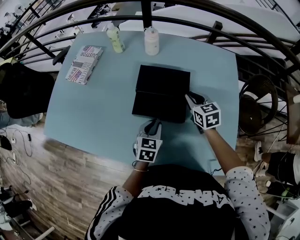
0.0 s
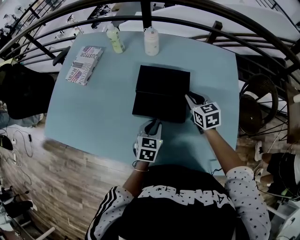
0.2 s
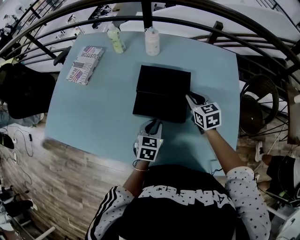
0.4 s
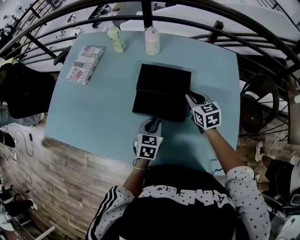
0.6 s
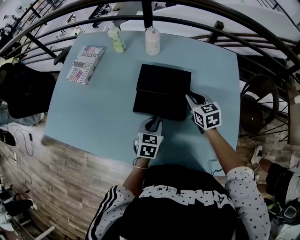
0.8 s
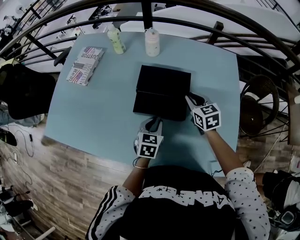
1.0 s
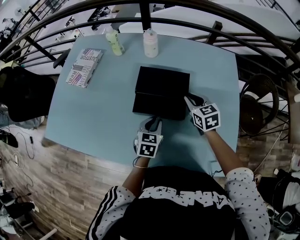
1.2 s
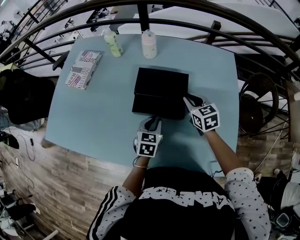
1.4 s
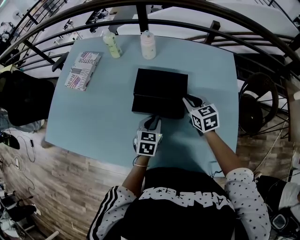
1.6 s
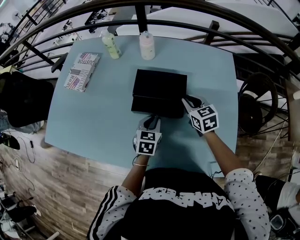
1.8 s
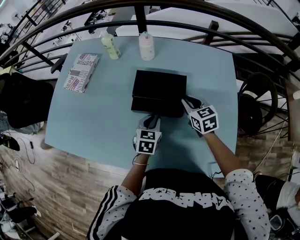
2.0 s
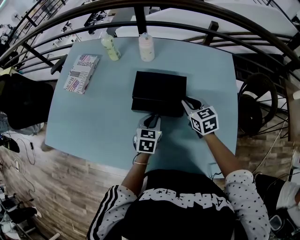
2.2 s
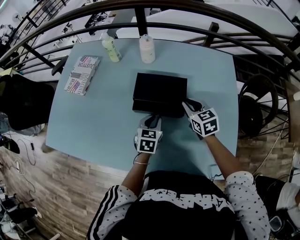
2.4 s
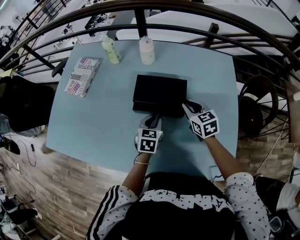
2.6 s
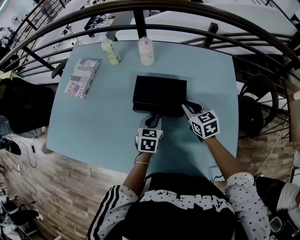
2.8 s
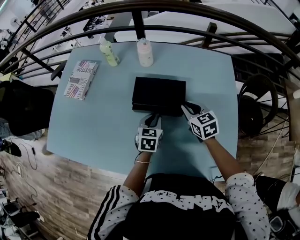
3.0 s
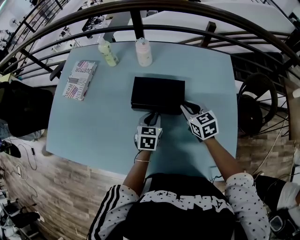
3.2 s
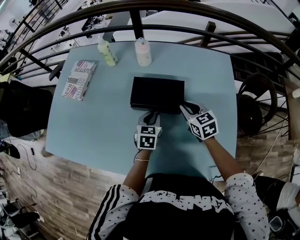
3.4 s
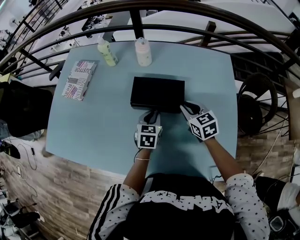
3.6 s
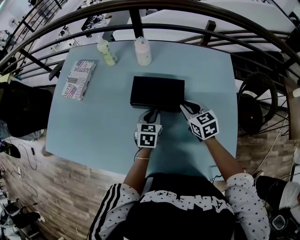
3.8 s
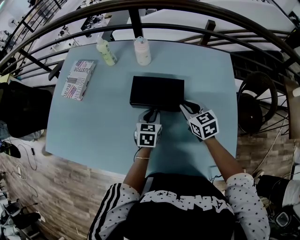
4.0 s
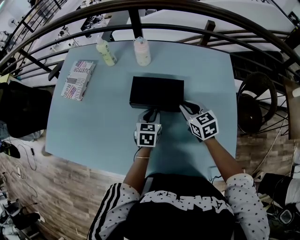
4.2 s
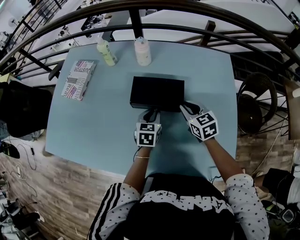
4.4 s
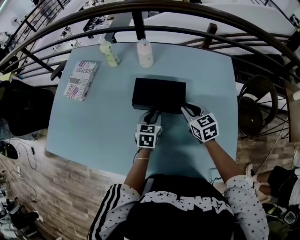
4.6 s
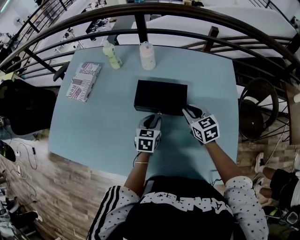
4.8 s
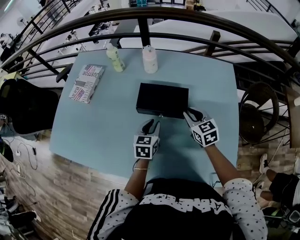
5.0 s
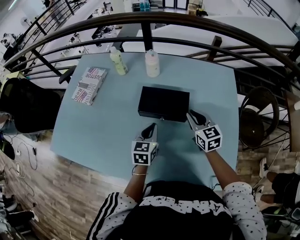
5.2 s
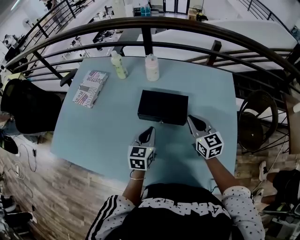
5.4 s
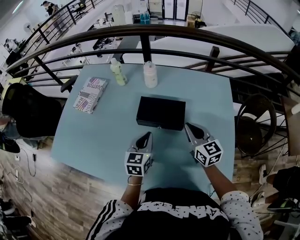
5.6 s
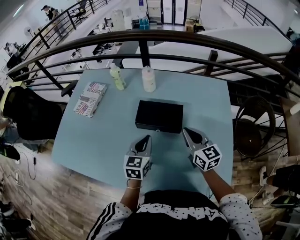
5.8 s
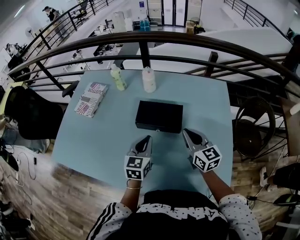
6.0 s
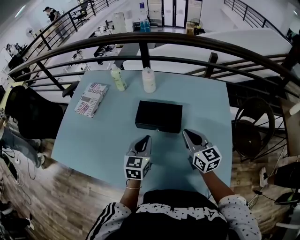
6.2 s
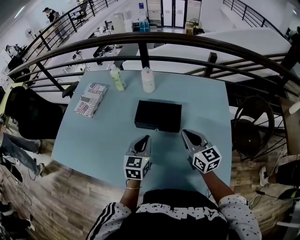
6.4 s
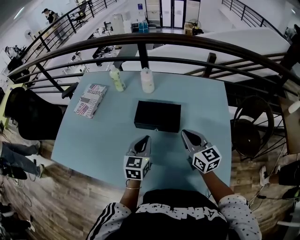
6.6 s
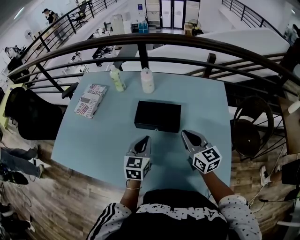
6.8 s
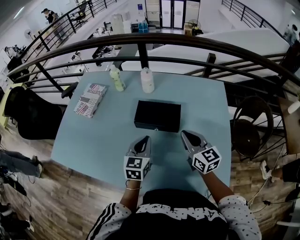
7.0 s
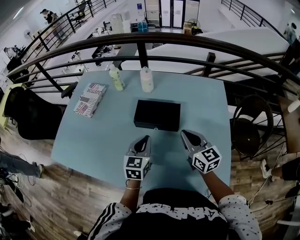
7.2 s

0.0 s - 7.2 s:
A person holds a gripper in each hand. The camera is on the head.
0.0 s - 1.4 s: The grippers move only a little.
1.4 s - 2.8 s: The left gripper changes place by roughly 5 cm.
2.8 s - 4.4 s: The grippers stay close to where they were, moving slightly.
4.4 s - 5.8 s: Both grippers move upward and backward, approximately 15 cm. The right gripper swivels roughly 20 degrees.
5.8 s - 7.2 s: The grippers stay close to where they were, moving slightly.

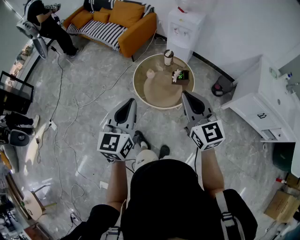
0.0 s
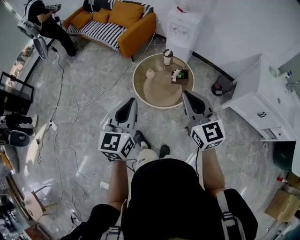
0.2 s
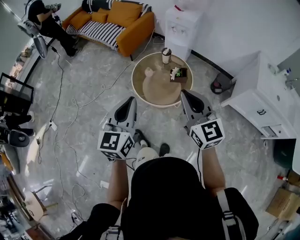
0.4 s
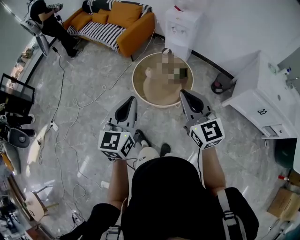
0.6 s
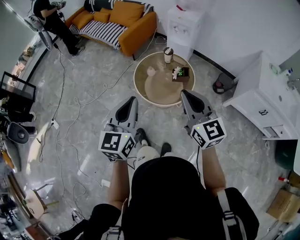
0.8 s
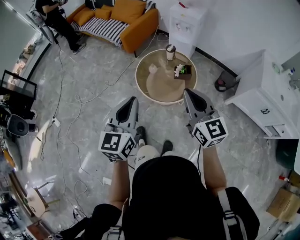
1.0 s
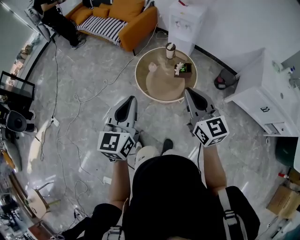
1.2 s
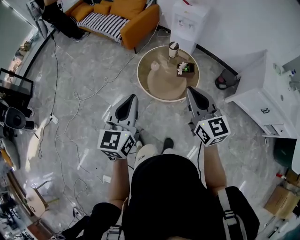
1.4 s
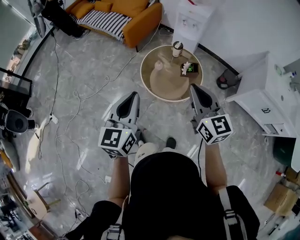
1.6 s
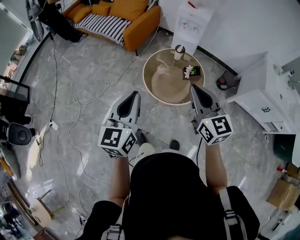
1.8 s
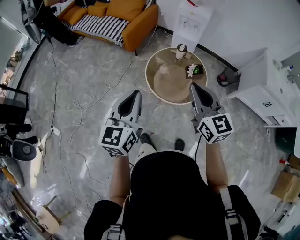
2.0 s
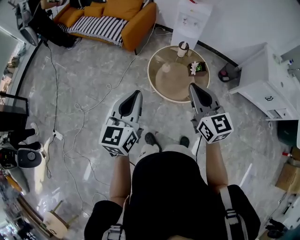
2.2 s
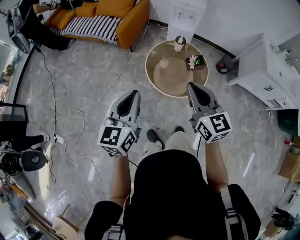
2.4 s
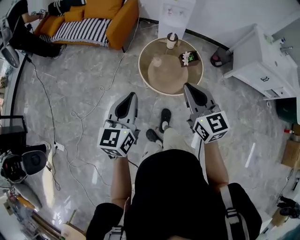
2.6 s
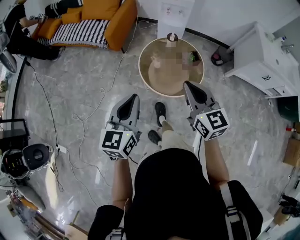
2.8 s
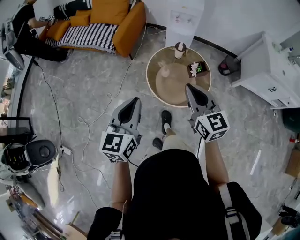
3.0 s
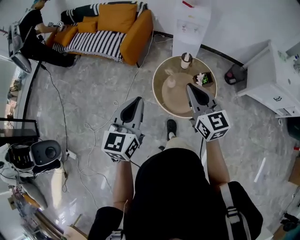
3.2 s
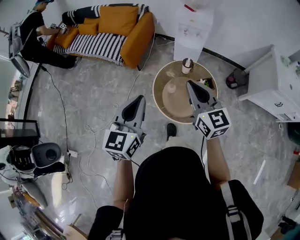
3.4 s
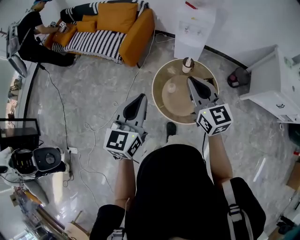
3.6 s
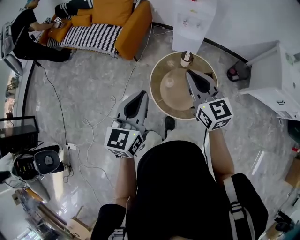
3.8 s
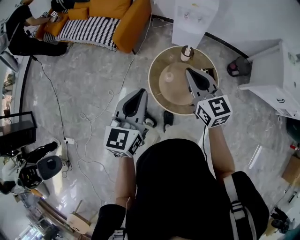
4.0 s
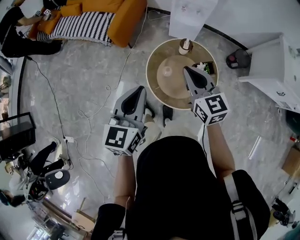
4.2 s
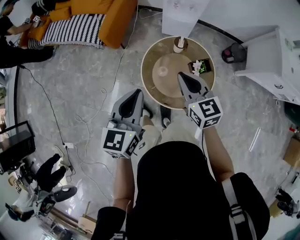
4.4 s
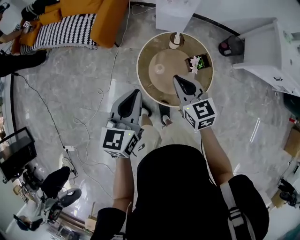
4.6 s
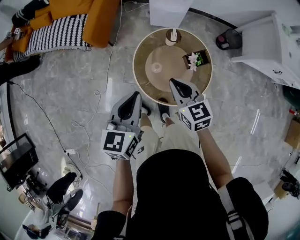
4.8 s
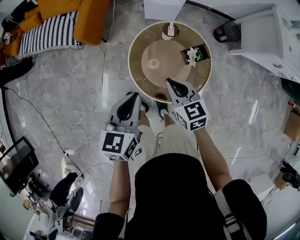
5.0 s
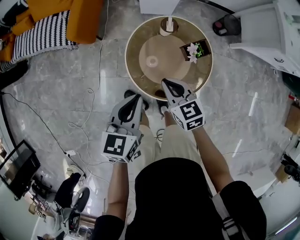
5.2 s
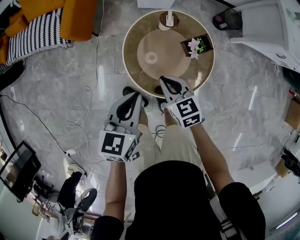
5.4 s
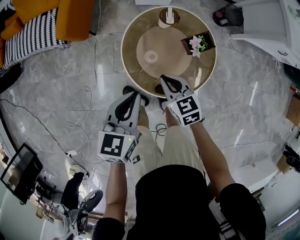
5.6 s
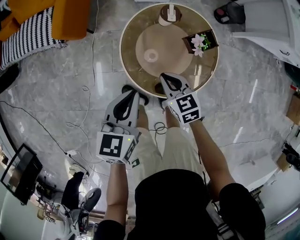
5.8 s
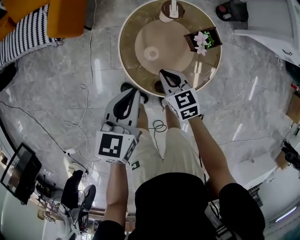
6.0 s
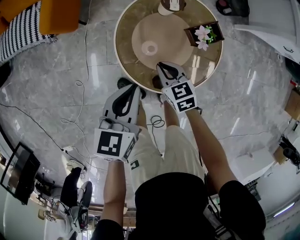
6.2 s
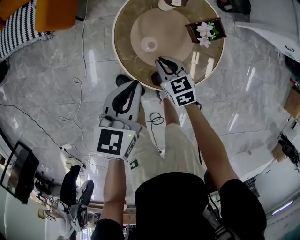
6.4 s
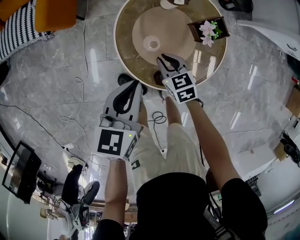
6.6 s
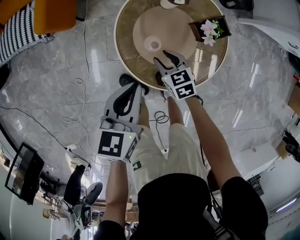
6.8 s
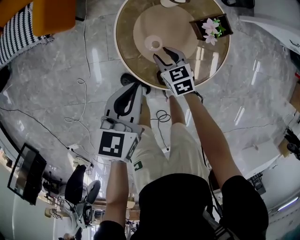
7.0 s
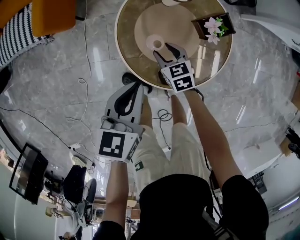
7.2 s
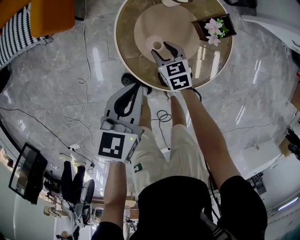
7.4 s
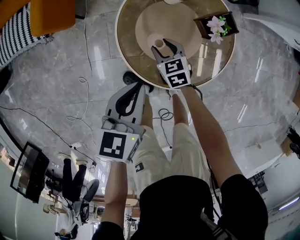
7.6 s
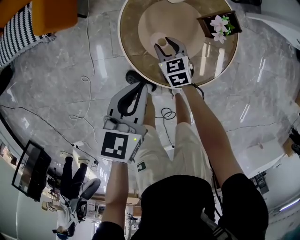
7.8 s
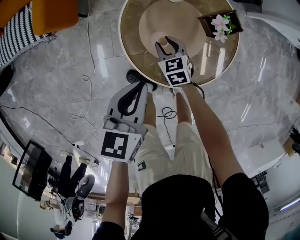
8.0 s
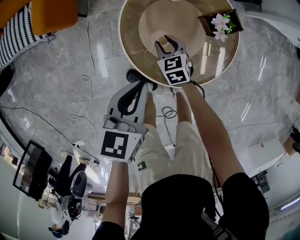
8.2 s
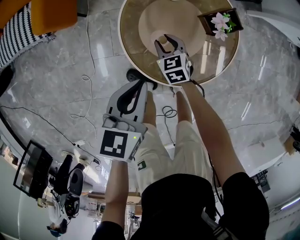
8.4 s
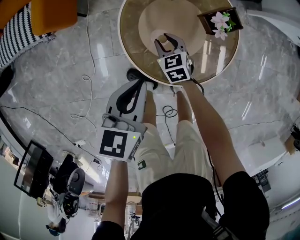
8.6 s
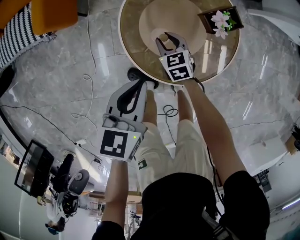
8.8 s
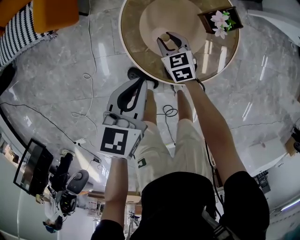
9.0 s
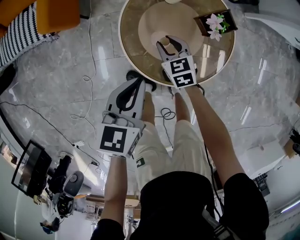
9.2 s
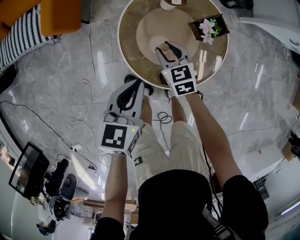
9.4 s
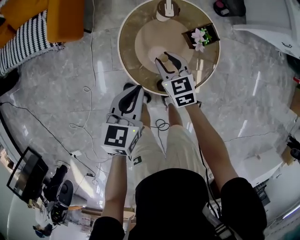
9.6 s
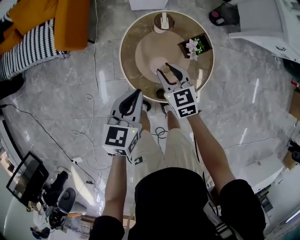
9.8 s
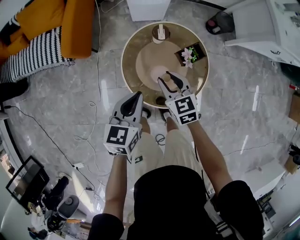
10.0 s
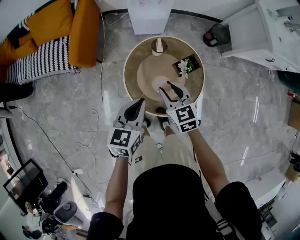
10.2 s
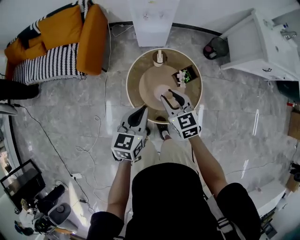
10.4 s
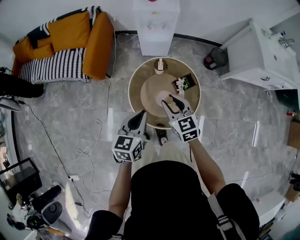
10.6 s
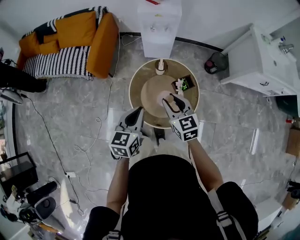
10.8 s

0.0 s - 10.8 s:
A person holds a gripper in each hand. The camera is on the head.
0.0 s - 1.6 s: The grippers both shift to the left by approximately 5 cm.
1.6 s - 3.0 s: The left gripper travels forward and to the left by some 20 cm. The right gripper travels to the left, forward and downward by approximately 20 cm.
3.0 s - 4.6 s: Both grippers travel together forward and downward, some 25 cm.
4.6 s - 6.2 s: The two grippers go roughly 25 cm downward. The right gripper swivels about 20 degrees, while the left gripper rotates some 20 degrees.
6.2 s - 7.8 s: The right gripper moves downward and forward, roughly 15 cm, and opens up; the left gripper ends up some 5 cm from where it was.
7.8 s - 9.2 s: The right gripper is displaced upward by some 5 cm.
9.2 s - 10.8 s: The right gripper heads upward, covering some 40 cm, and rotates some 20 degrees. Meanwhile the left gripper heads upward, covering approximately 25 cm.

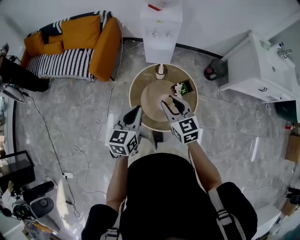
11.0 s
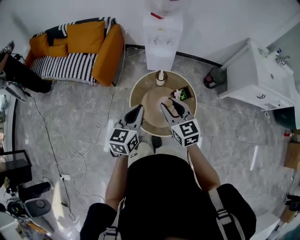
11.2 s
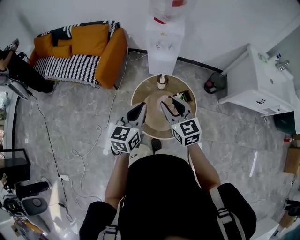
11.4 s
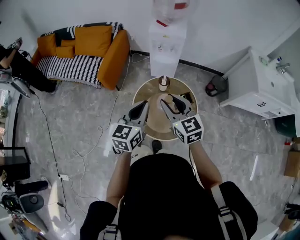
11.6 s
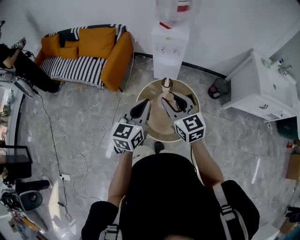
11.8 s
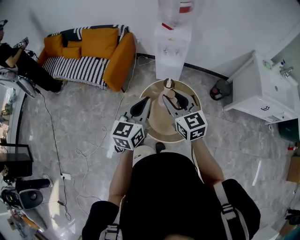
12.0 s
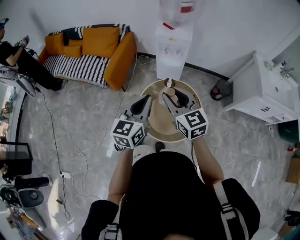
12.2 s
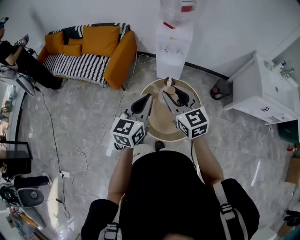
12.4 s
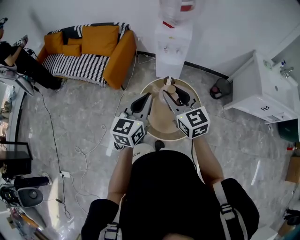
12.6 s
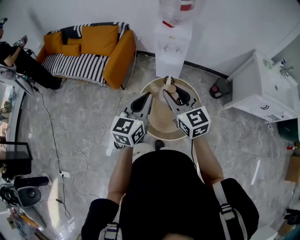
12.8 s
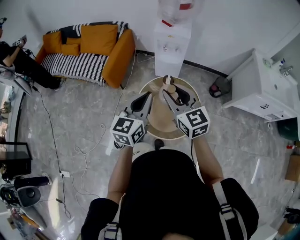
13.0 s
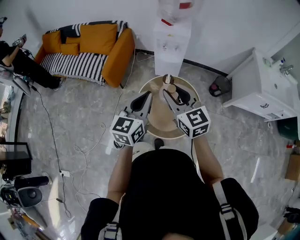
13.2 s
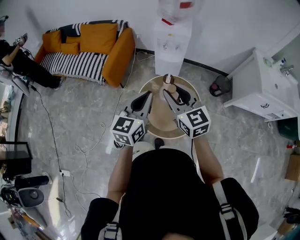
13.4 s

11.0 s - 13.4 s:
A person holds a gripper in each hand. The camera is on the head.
11.0 s - 12.2 s: Both grippers move upward, roughly 10 cm.
12.2 s - 13.4 s: Both grippers stay about where they are.

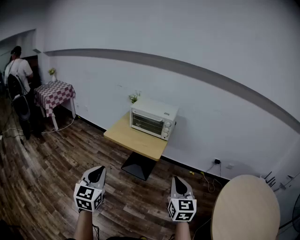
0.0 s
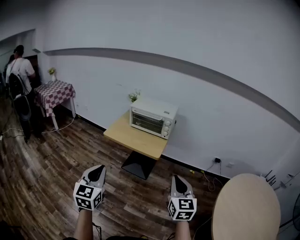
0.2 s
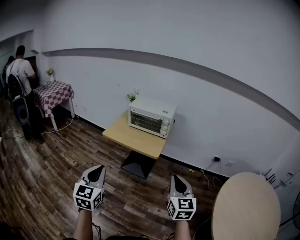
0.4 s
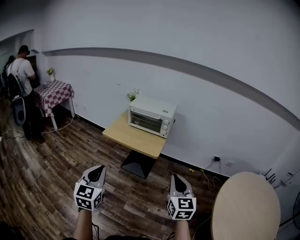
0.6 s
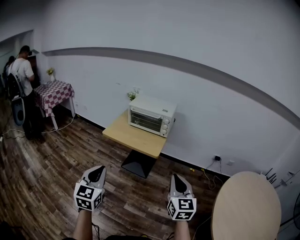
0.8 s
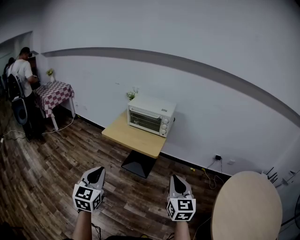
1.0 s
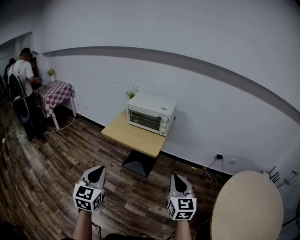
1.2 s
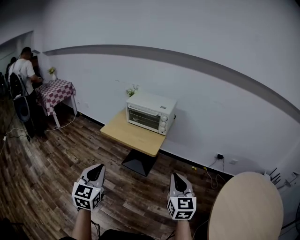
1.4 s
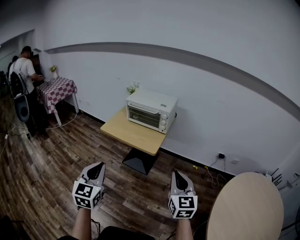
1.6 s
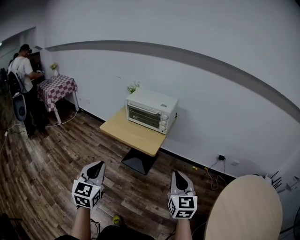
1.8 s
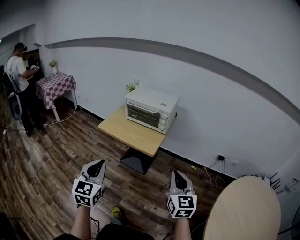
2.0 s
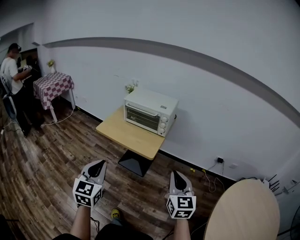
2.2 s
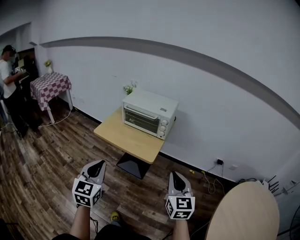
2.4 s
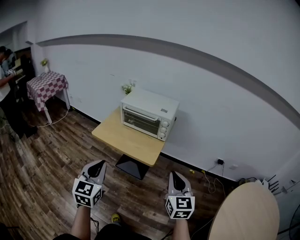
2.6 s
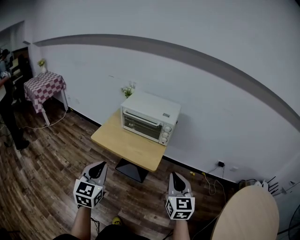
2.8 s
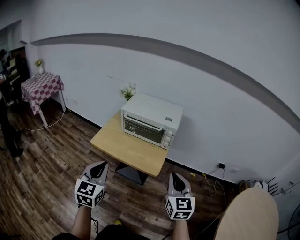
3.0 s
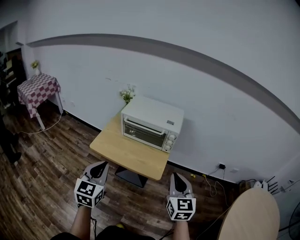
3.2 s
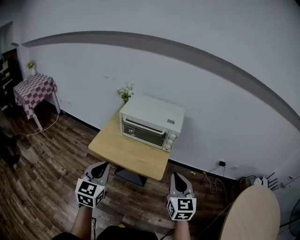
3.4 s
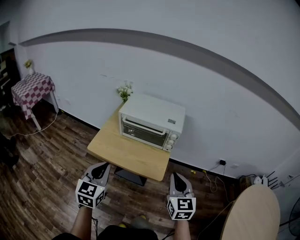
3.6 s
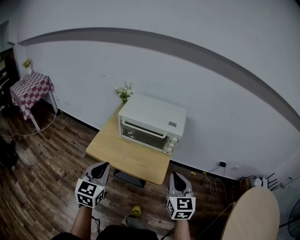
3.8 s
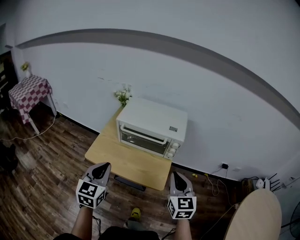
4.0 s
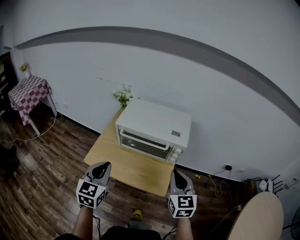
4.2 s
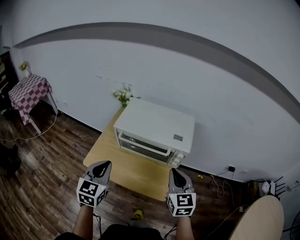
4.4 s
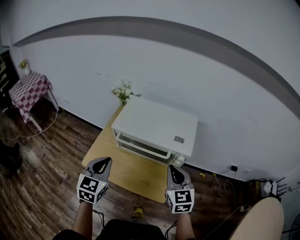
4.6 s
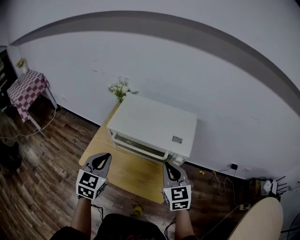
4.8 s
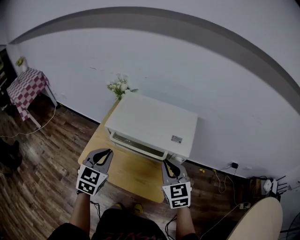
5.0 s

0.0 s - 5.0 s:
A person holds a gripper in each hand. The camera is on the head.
0.0 s - 1.6 s: Both grippers move to the right, roughly 10 cm.
1.6 s - 3.4 s: The left gripper travels forward by about 30 cm, while the right gripper heads forward and to the left, covering approximately 30 cm.
3.4 s - 5.0 s: Both grippers move forward, about 30 cm.
